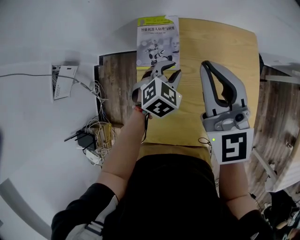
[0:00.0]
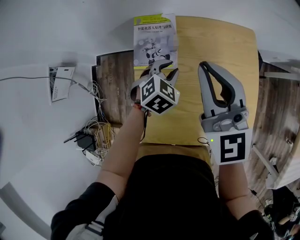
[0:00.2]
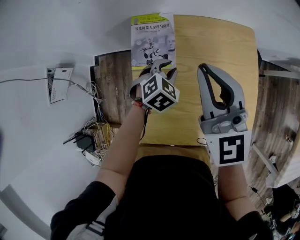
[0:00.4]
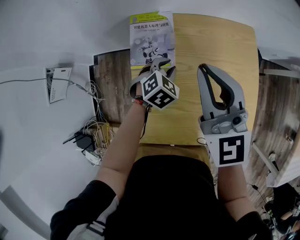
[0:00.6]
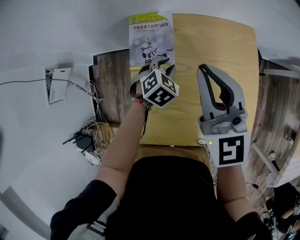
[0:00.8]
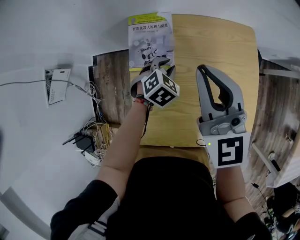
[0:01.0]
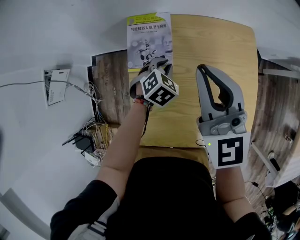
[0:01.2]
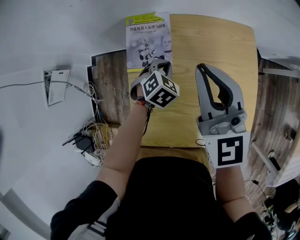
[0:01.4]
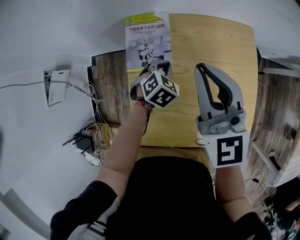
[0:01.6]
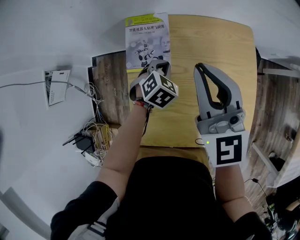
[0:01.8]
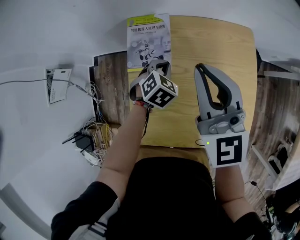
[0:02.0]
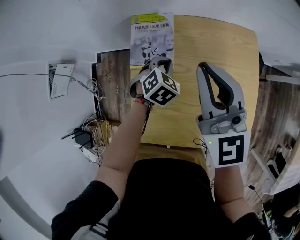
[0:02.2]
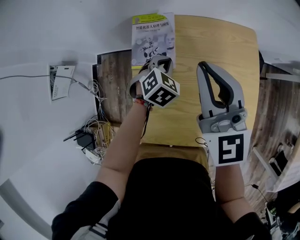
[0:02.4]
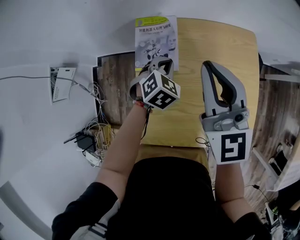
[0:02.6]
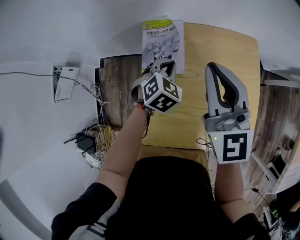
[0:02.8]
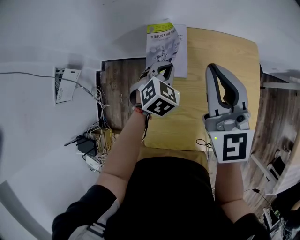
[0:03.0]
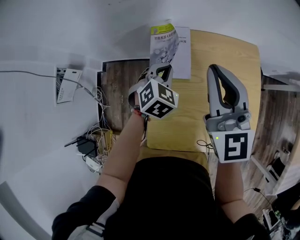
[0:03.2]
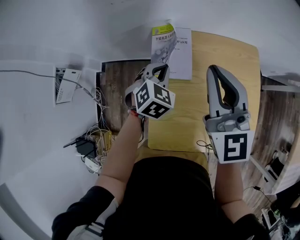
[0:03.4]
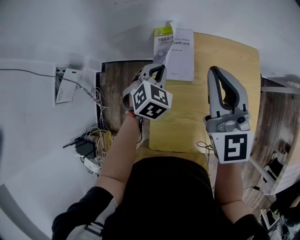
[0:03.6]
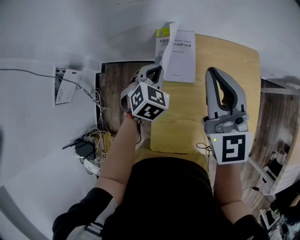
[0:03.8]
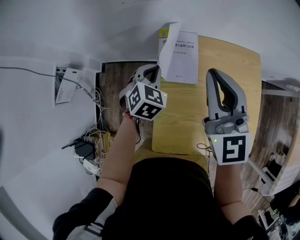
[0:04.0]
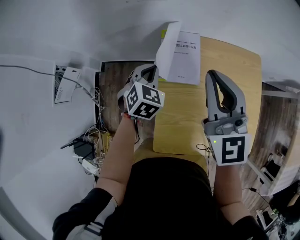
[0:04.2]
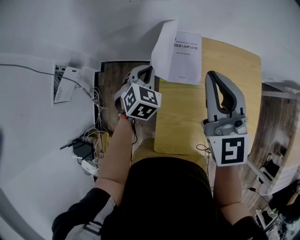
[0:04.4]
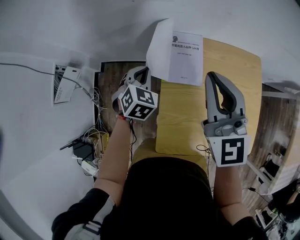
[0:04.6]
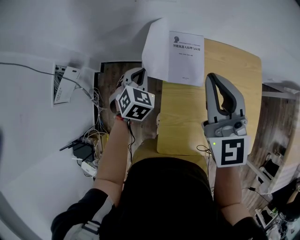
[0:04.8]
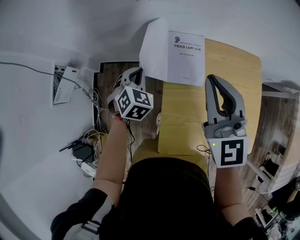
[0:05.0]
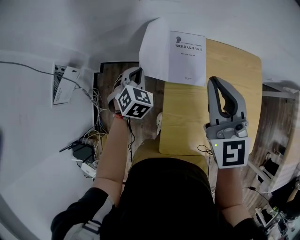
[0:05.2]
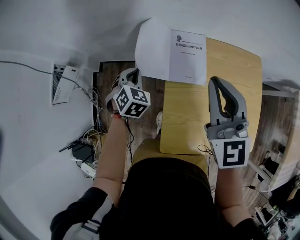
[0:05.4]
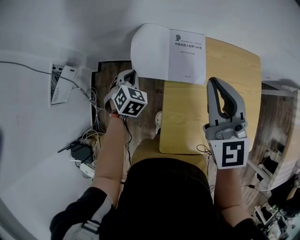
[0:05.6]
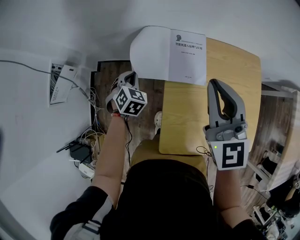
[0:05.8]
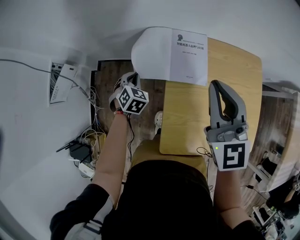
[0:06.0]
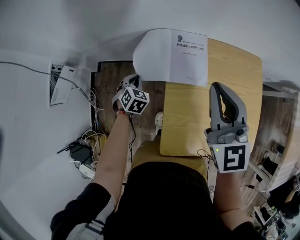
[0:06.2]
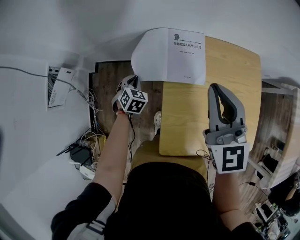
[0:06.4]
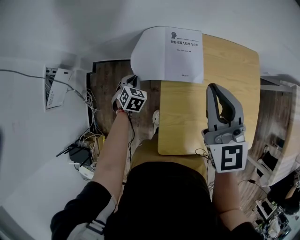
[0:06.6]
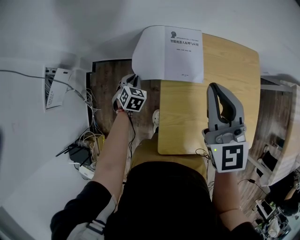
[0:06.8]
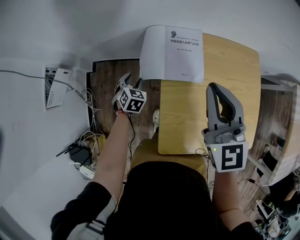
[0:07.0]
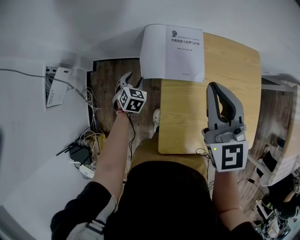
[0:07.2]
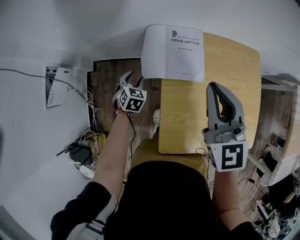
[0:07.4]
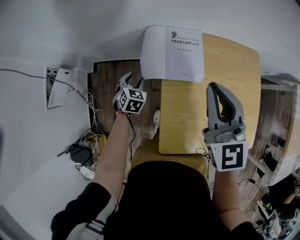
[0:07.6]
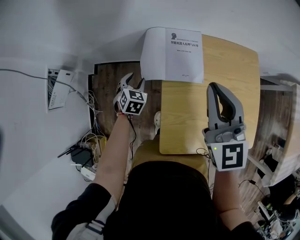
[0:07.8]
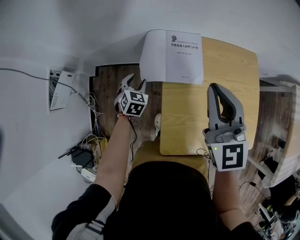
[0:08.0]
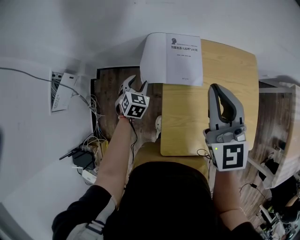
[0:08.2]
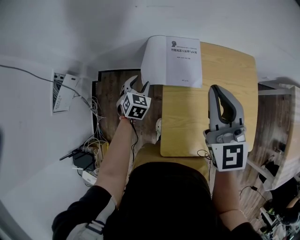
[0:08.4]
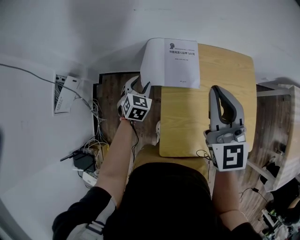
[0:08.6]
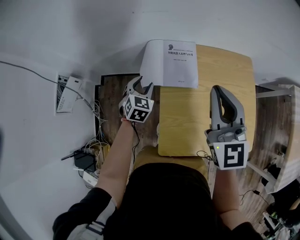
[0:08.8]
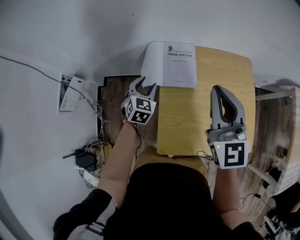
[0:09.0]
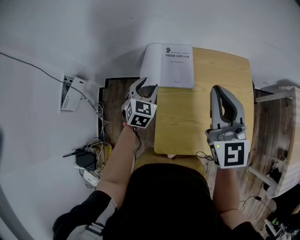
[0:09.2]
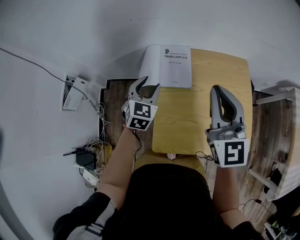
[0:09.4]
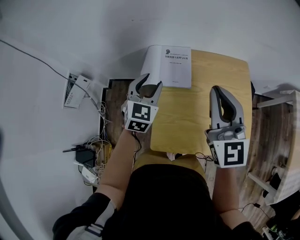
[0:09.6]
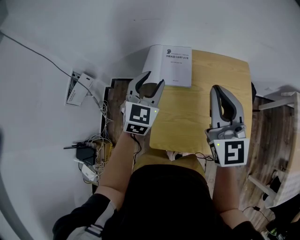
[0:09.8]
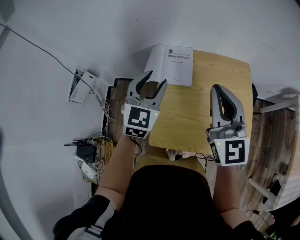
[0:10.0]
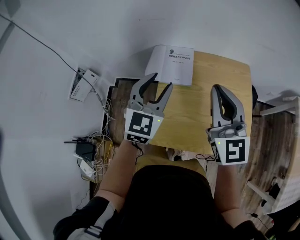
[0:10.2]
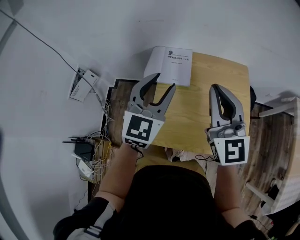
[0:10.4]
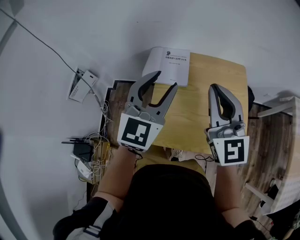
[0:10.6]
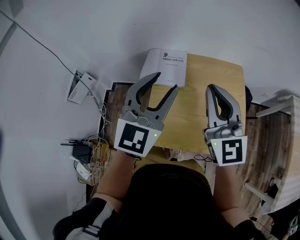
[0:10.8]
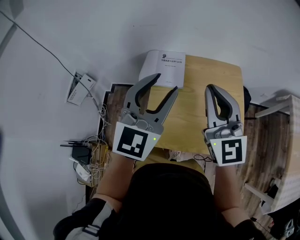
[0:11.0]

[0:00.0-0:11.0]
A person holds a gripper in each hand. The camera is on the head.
0:00.0 to 0:01.6: The left gripper travels downward by approximately 5 cm, and closes its fingers.
0:01.6 to 0:03.2: The left gripper is displaced upward and to the left by some 10 cm, while the right gripper shifts by approximately 5 cm.
0:03.2 to 0:04.8: The left gripper heads to the left, covering some 20 cm. Meanwhile the right gripper goes about 10 cm to the left.
0:04.8 to 0:06.2: The left gripper shifts approximately 15 cm downward and to the left.
0:06.2 to 0:07.8: The left gripper opens its fingers.
0:07.8 to 0:09.4: The left gripper is displaced upward and to the right by approximately 25 cm. The right gripper travels to the right, upward and backward by approximately 15 cm.
0:09.4 to 0:11.0: The right gripper moves backward, roughly 5 cm. Meanwhile the left gripper shifts approximately 30 cm upward, backward and to the right, and swivels about 30 degrees.

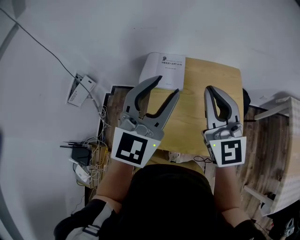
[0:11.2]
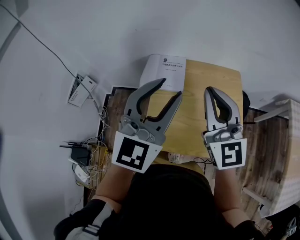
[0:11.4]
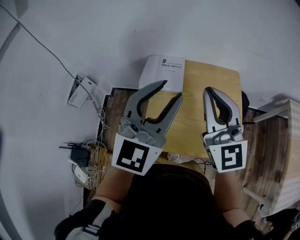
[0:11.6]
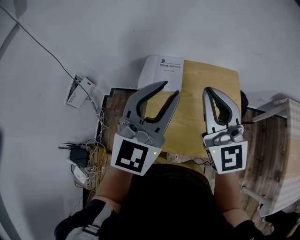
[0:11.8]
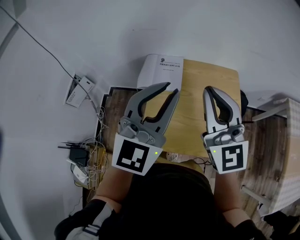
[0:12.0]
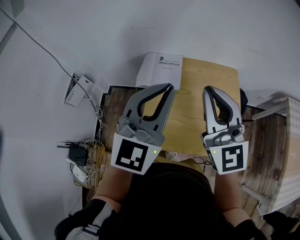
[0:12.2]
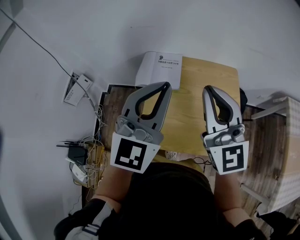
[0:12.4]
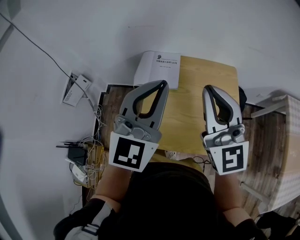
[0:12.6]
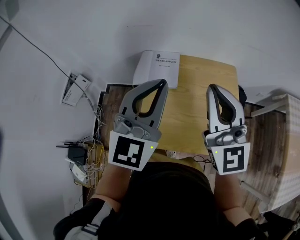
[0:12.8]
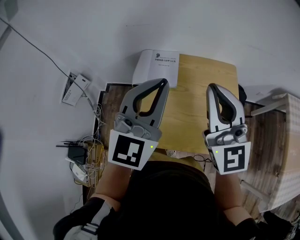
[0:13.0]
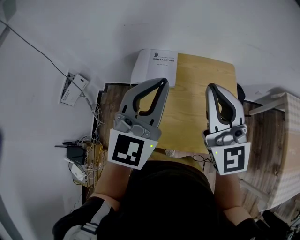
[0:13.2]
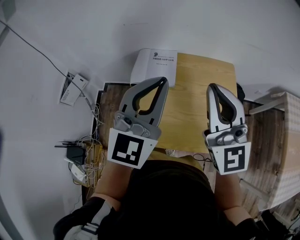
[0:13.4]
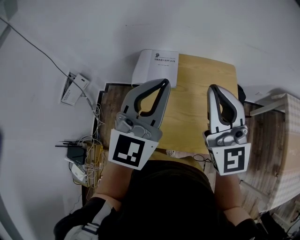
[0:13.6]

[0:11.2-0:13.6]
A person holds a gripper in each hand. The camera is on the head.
0:11.2 to 0:12.4: The left gripper closes.
0:12.4 to 0:13.6: There are only small adjustments of the grippers.

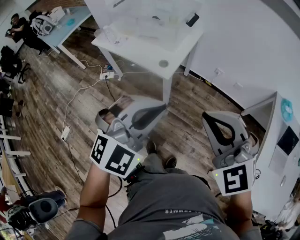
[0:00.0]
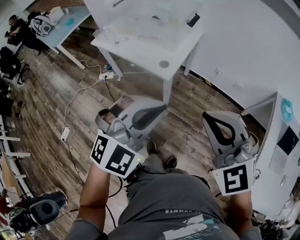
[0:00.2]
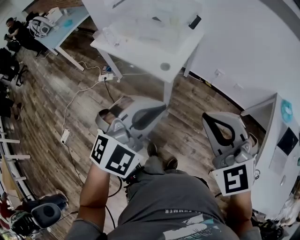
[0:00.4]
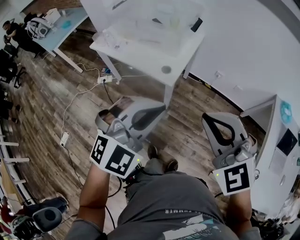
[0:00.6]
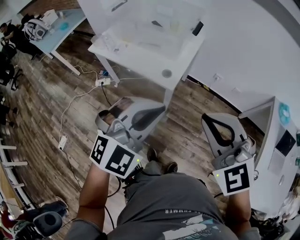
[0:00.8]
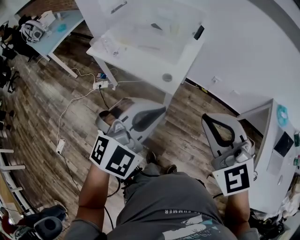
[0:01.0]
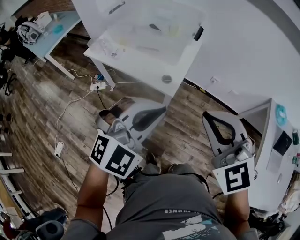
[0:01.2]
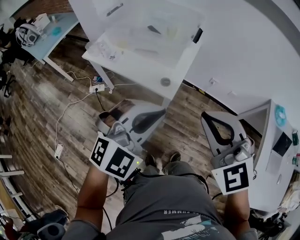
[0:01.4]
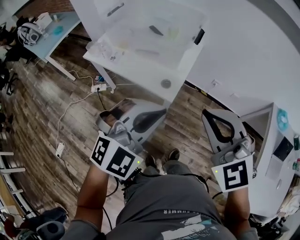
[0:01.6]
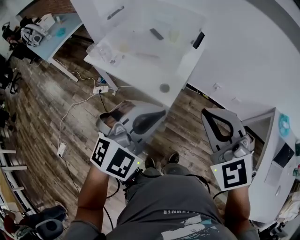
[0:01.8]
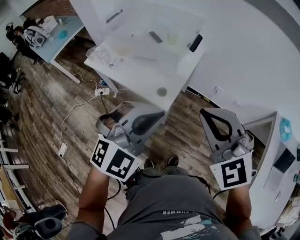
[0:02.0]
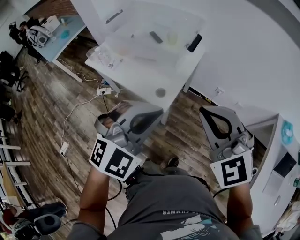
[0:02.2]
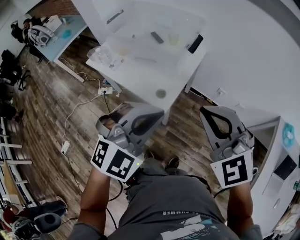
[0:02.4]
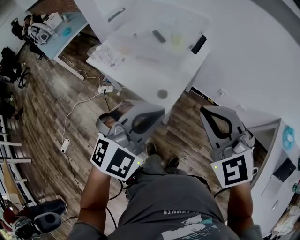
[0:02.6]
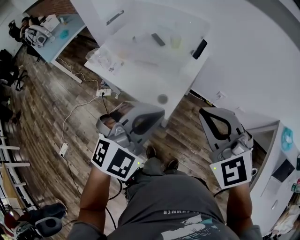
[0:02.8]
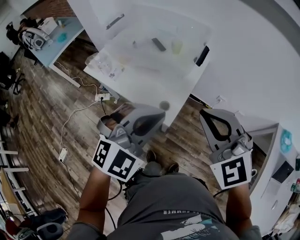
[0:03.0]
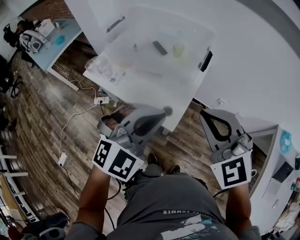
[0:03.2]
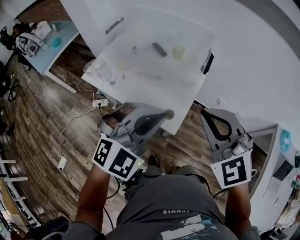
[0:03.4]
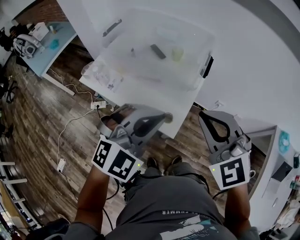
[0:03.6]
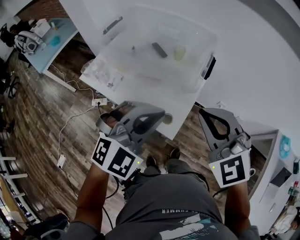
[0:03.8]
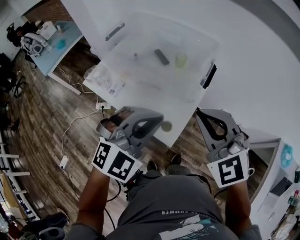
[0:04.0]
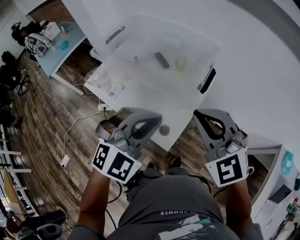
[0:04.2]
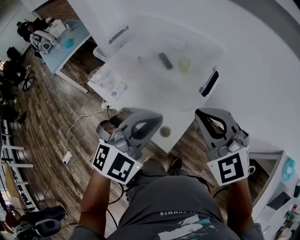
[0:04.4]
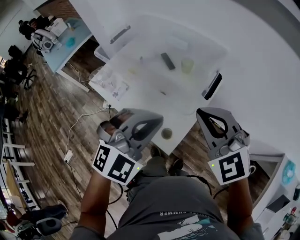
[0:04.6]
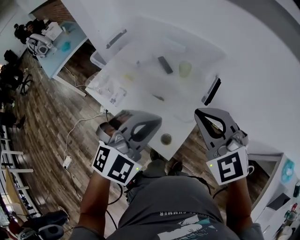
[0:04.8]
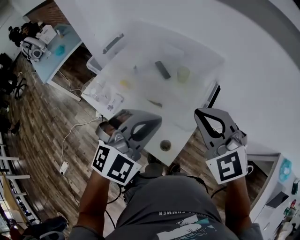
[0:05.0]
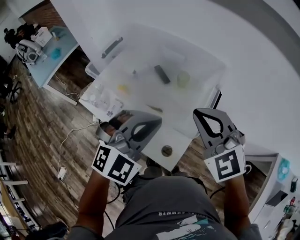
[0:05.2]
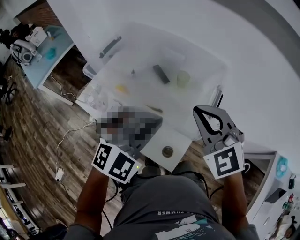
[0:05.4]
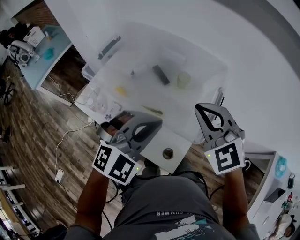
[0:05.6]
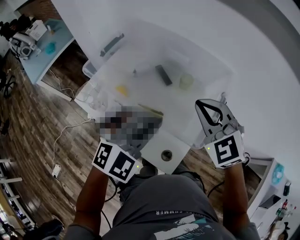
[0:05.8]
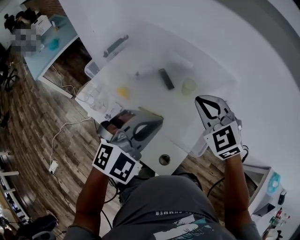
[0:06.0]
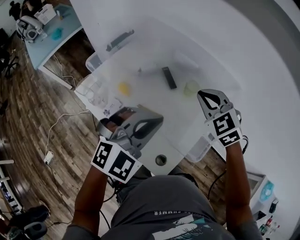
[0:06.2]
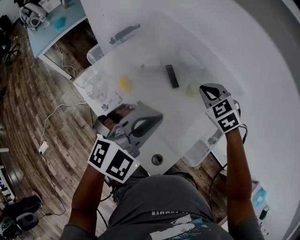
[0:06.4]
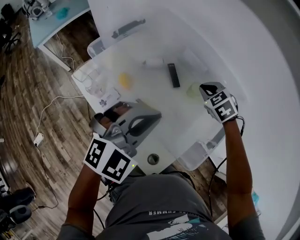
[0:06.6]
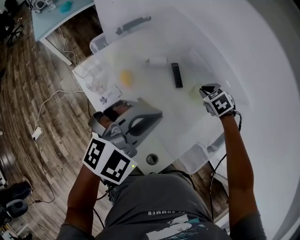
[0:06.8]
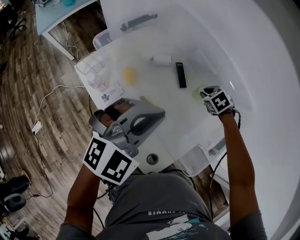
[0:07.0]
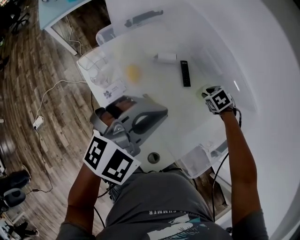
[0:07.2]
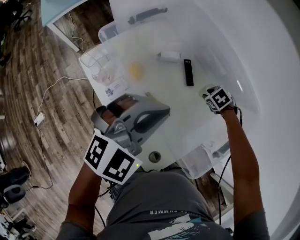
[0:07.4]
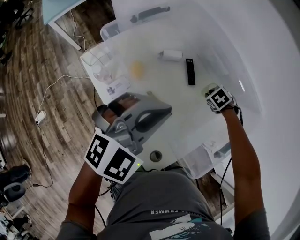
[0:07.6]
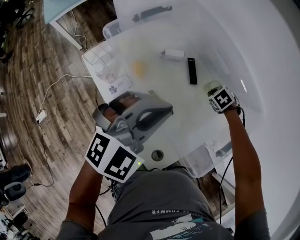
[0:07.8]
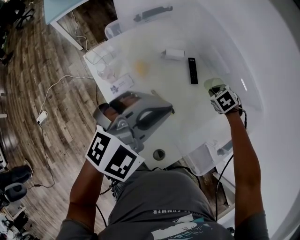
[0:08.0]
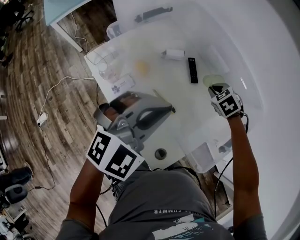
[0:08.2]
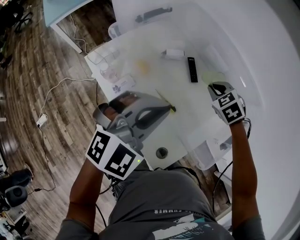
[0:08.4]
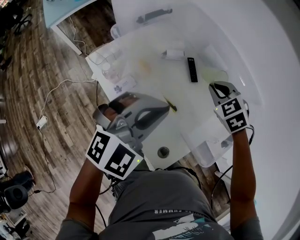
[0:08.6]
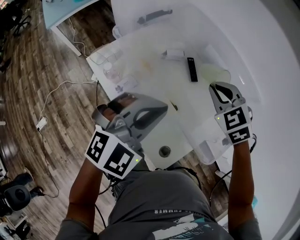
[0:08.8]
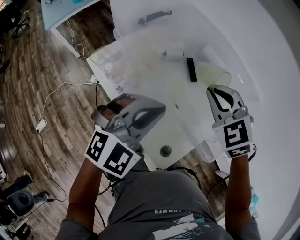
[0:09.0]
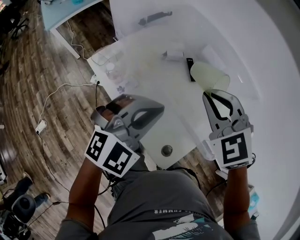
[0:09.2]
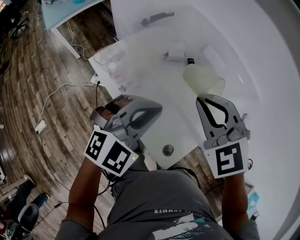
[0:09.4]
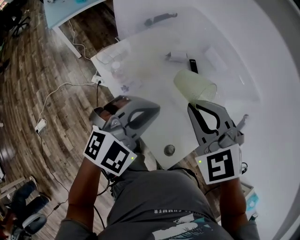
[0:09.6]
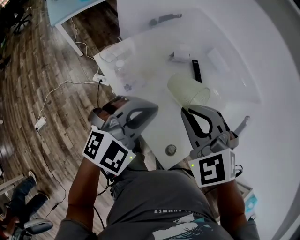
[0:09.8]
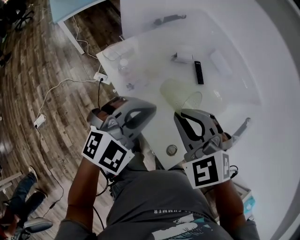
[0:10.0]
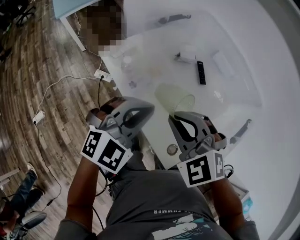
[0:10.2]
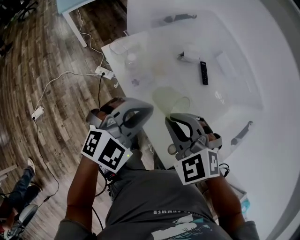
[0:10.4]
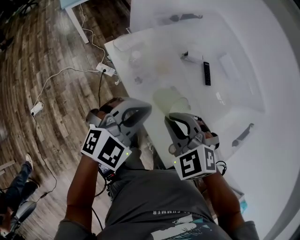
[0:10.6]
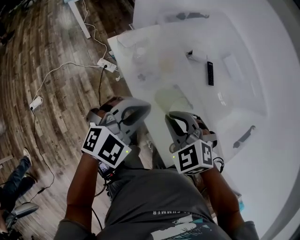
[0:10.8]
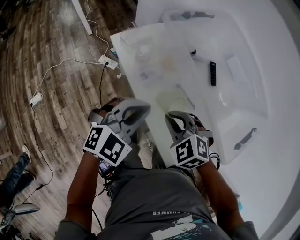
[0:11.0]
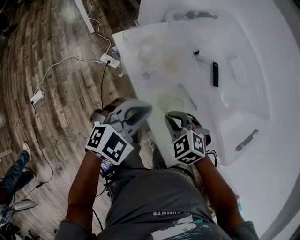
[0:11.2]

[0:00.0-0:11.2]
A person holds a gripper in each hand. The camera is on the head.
0:00.0 to 0:01.6: Both grippers travel together forward and to the left, some 15 cm.
0:01.6 to 0:03.2: Both grippers move forward, some 15 cm.
0:03.2 to 0:04.8: The grippers both shift forward by approximately 15 cm.
0:04.8 to 0:06.4: The left gripper is displaced forward and to the left by approximately 15 cm; the right gripper shifts roughly 30 cm forward and downward, and rotates some 30 degrees.
0:06.4 to 0:08.0: The left gripper changes place by roughly 5 cm. Meanwhile the right gripper heads downward, covering about 20 cm, and rotates about 30 degrees.
0:08.0 to 0:09.6: The left gripper changes place by some 10 cm, while the right gripper shifts by about 40 cm, and tilts its fingers approximately 40 degrees upward.
0:09.6 to 0:11.2: The left gripper is displaced downward and to the left by roughly 15 cm, while the right gripper heads downward, covering about 25 cm, and rotates roughly 30 degrees.
